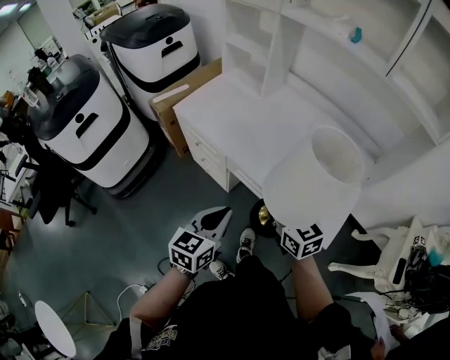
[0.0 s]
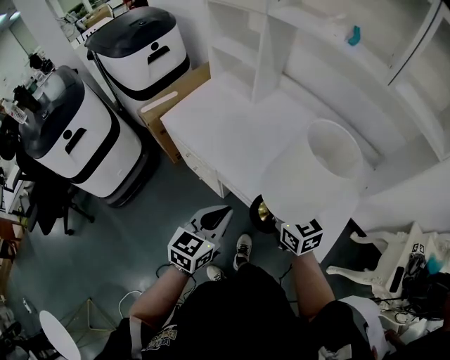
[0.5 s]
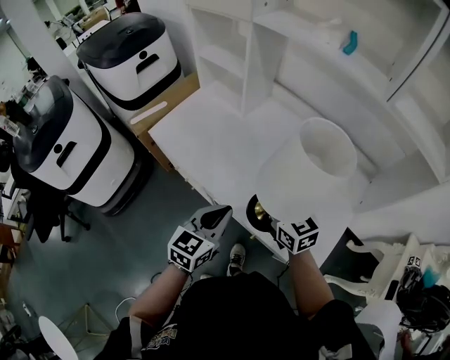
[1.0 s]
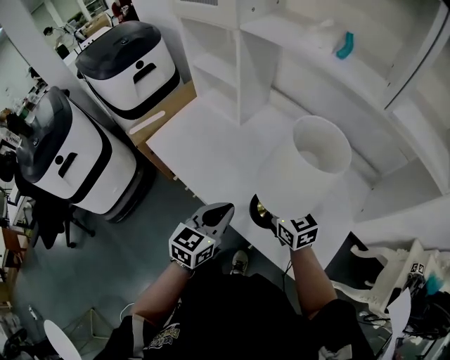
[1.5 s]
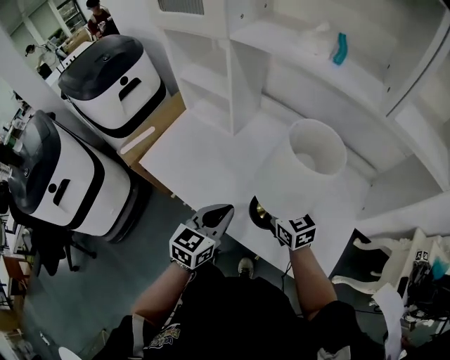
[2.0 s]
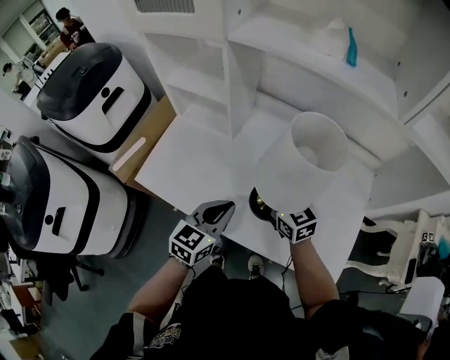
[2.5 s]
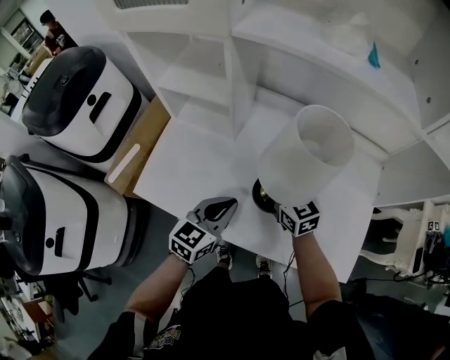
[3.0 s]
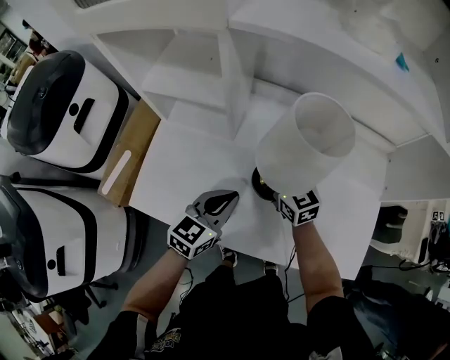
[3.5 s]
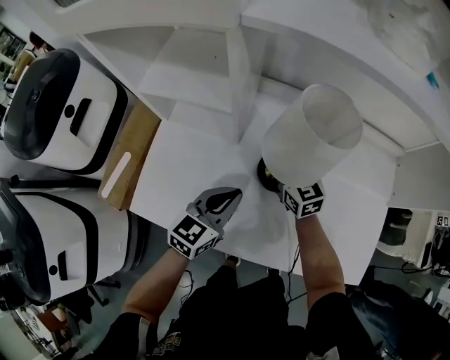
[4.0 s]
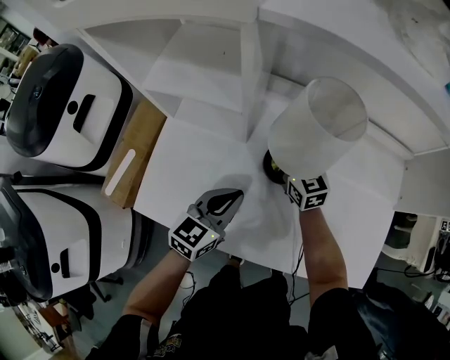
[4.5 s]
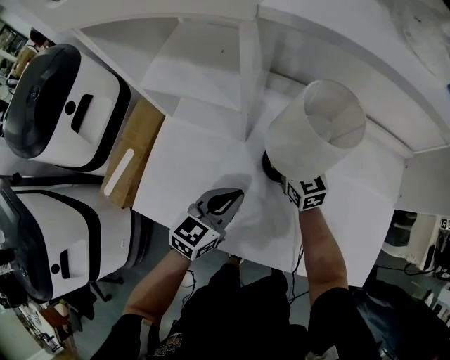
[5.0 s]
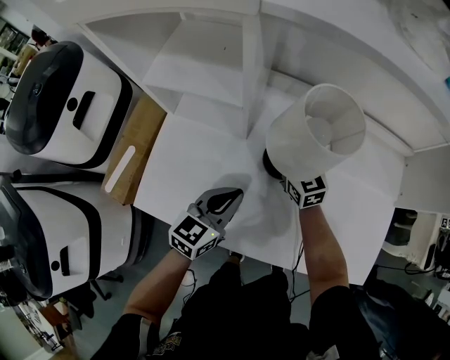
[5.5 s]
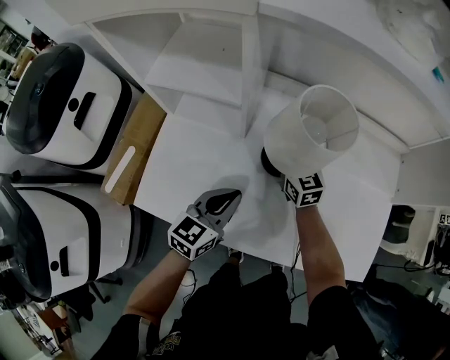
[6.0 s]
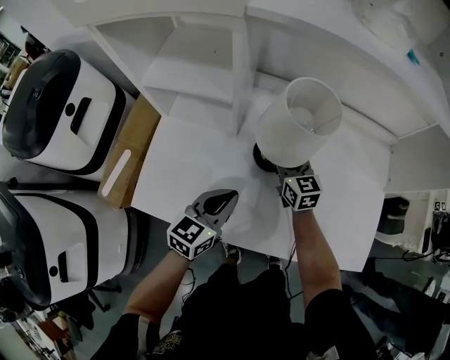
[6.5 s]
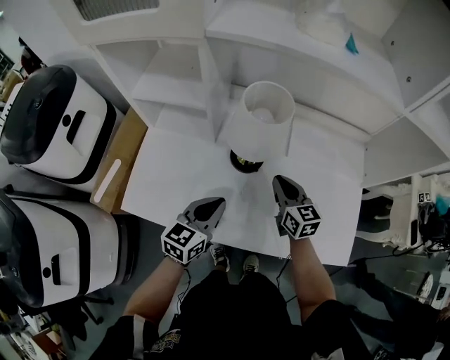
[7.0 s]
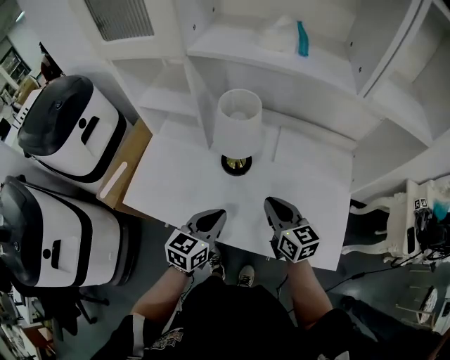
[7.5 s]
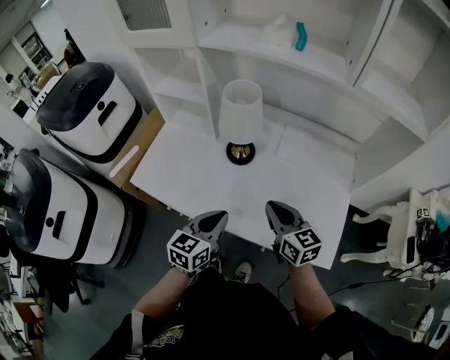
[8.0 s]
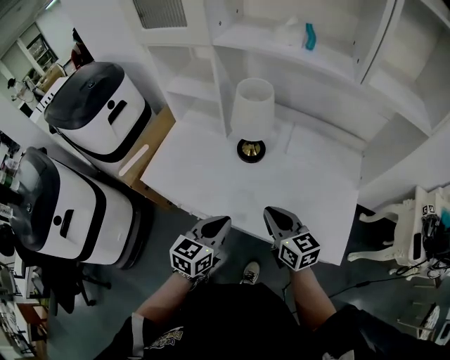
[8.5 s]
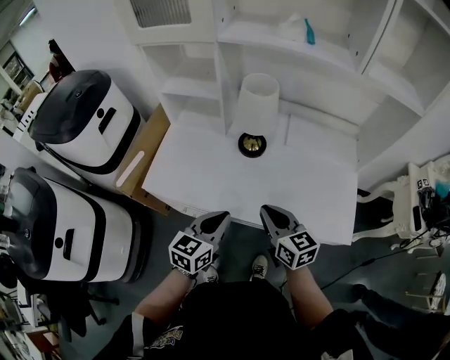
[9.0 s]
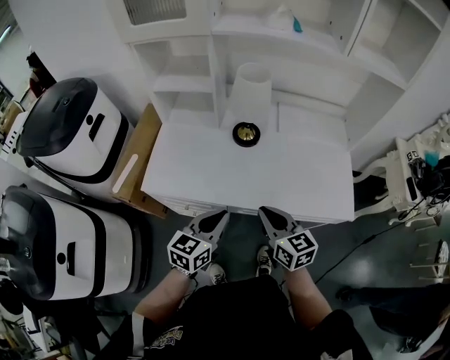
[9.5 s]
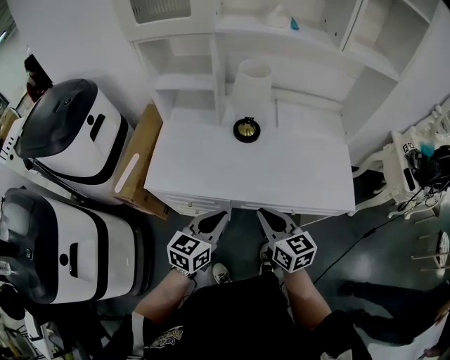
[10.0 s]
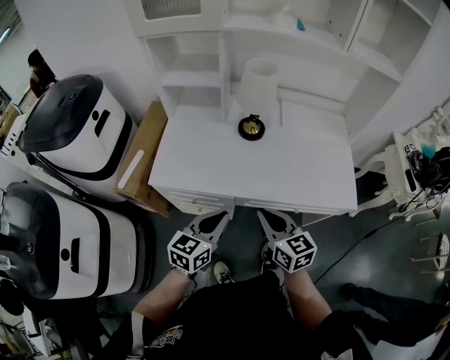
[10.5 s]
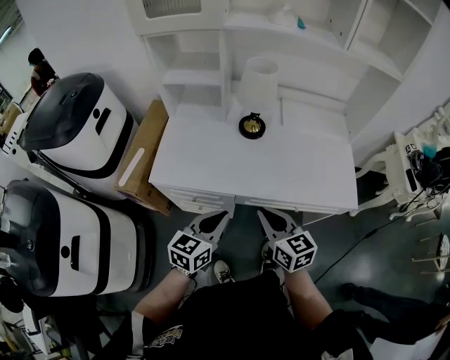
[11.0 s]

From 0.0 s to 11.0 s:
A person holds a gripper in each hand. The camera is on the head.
From 0.0 s to 2.0 s: Both grippers travel together forward, some 25 cm.
From 2.0 s to 3.5 s: The right gripper is displaced forward, downward and to the left by roughly 20 cm. Meanwhile the left gripper shifts approximately 20 cm forward, to the left and downward, and turns by approximately 20 degrees.
From 3.5 s to 5.5 s: The right gripper goes about 5 cm forward.
From 5.5 s to 7.5 s: The right gripper is displaced backward, to the right and upward by roughly 30 cm, and opens, then closes again; the left gripper is displaced backward, to the right and upward by some 20 cm.
From 7.5 s to 9.0 s: Both grippers travel together backward and to the left, approximately 15 cm.
From 9.0 s to 11.0 s: The grippers both shift backward and to the left by approximately 10 cm.

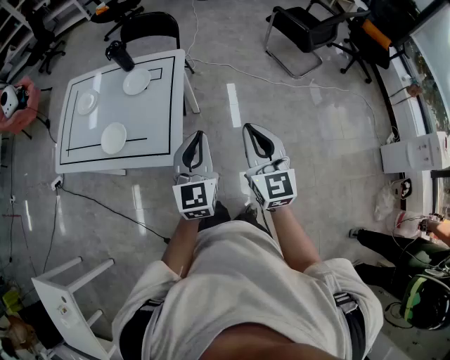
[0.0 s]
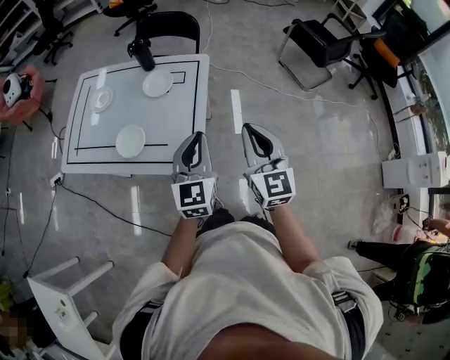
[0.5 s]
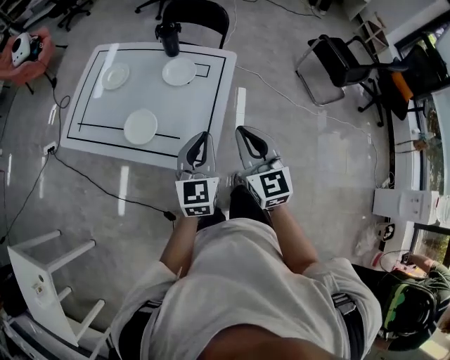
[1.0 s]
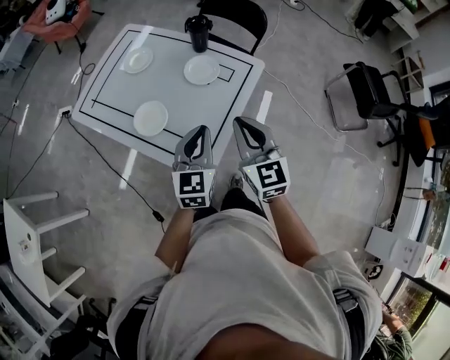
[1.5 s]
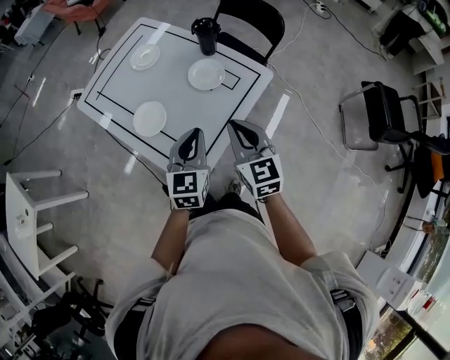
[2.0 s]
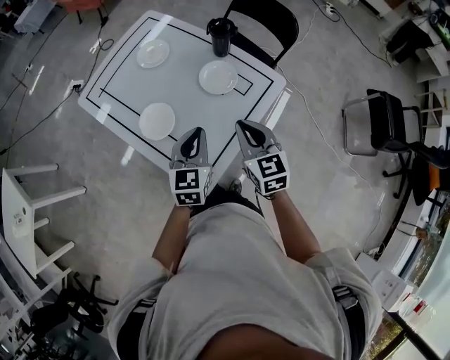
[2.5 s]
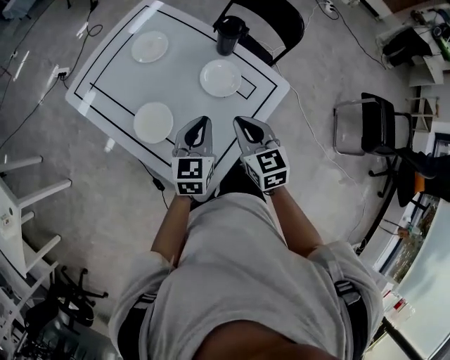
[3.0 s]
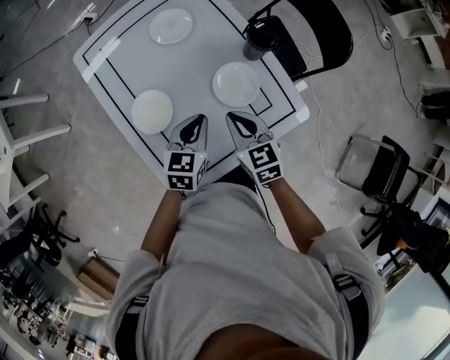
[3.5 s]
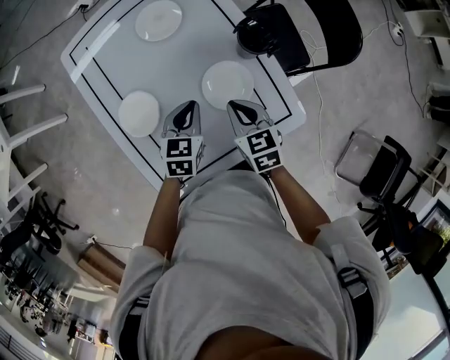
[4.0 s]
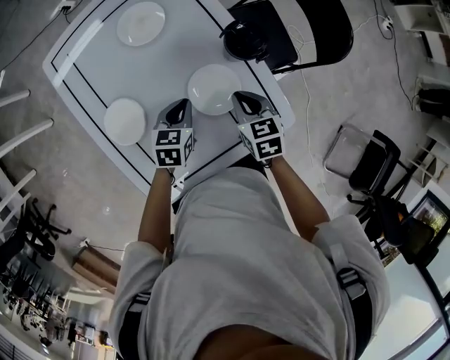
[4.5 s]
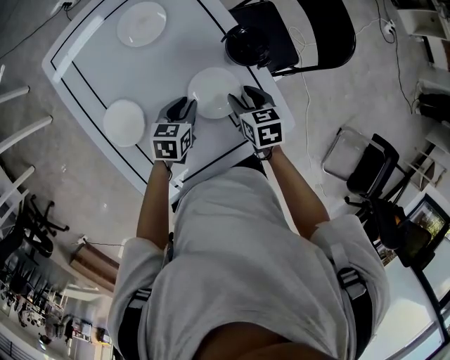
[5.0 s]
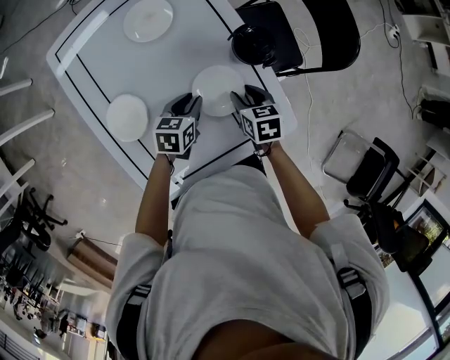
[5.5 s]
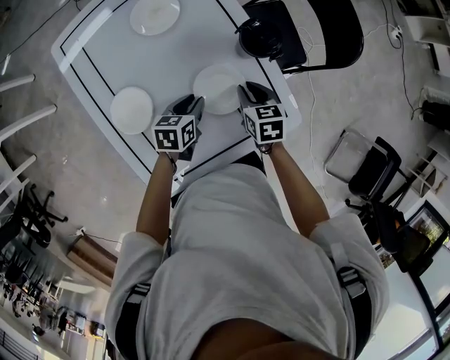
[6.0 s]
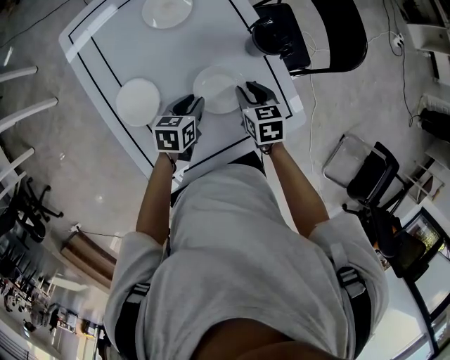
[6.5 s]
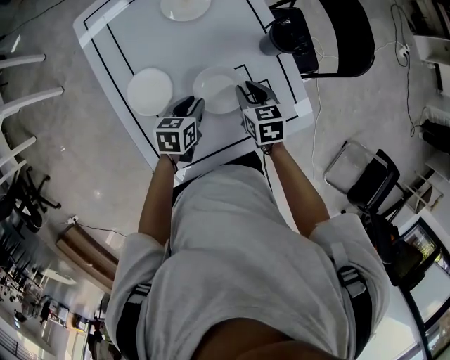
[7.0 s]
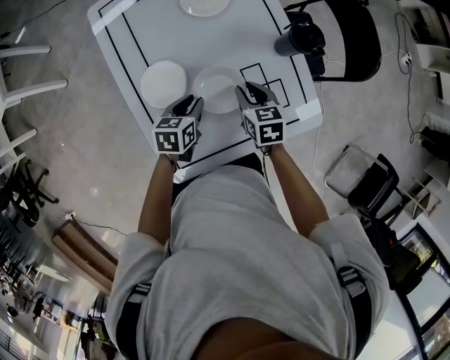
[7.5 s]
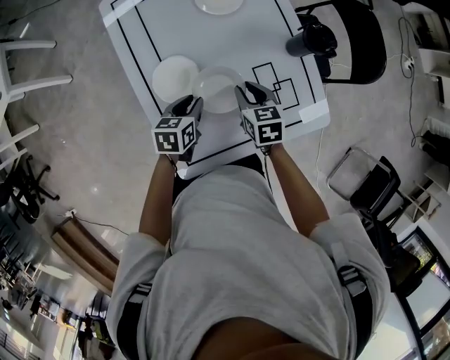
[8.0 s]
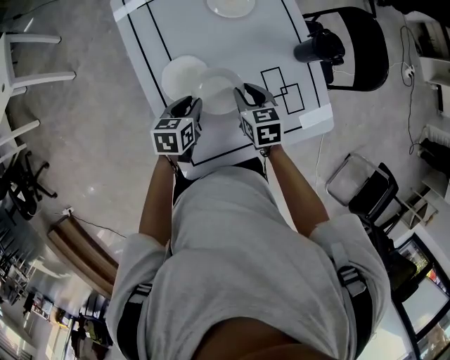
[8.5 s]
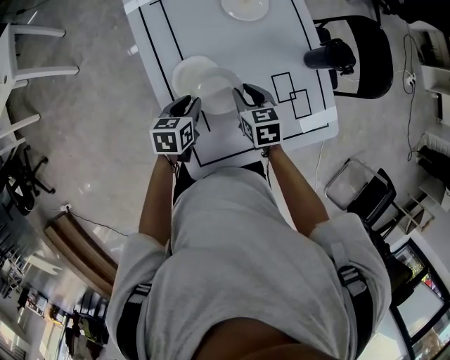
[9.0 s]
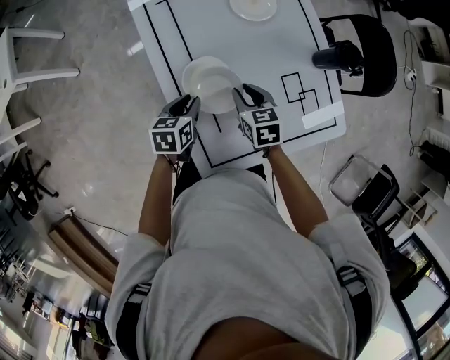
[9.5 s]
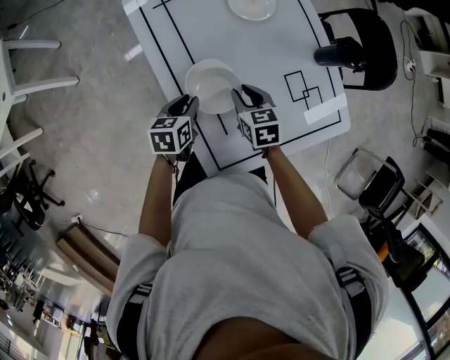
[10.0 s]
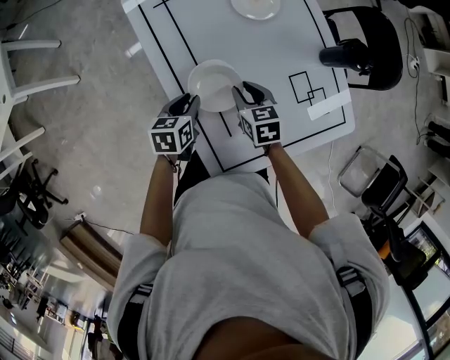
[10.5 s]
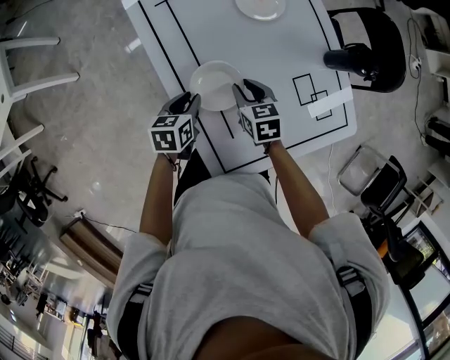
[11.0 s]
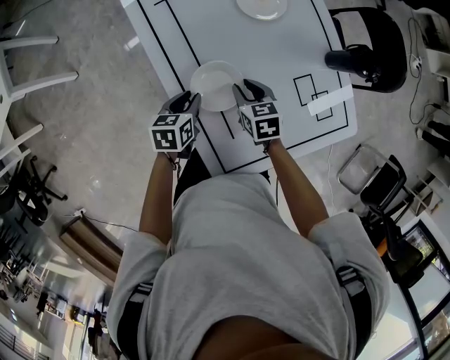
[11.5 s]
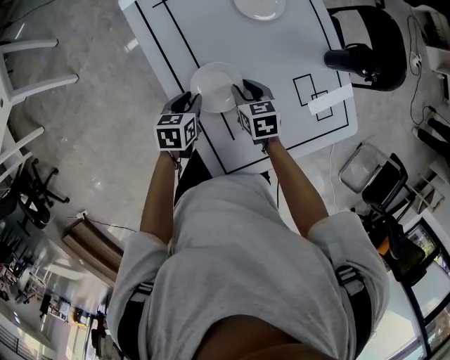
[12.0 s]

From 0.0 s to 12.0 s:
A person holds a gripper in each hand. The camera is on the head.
From 0.0 s to 2.0 s: The right gripper moves about 35 cm, and turns by about 40 degrees, while the left gripper moves approximately 30 cm, and swivels about 30 degrees.
From 2.0 s to 4.0 s: The right gripper ends up about 35 cm from where it was, and changes its angle by approximately 40 degrees. Meanwhile the left gripper changes place by roughly 35 cm, and turns by about 30 degrees.
From 4.0 s to 6.0 s: The right gripper heads downward and to the right, covering approximately 10 cm, and opens and closes again, while the left gripper travels downward by about 10 cm, changes its angle by some 20 degrees, and opens up.
From 6.0 s to 8.0 s: The left gripper is displaced to the left and backward by approximately 15 cm. The right gripper is displaced to the left by approximately 15 cm.
From 8.0 s to 10.0 s: The grippers both shift to the left by roughly 15 cm.
From 10.0 s to 12.0 s: The right gripper shifts by some 5 cm.

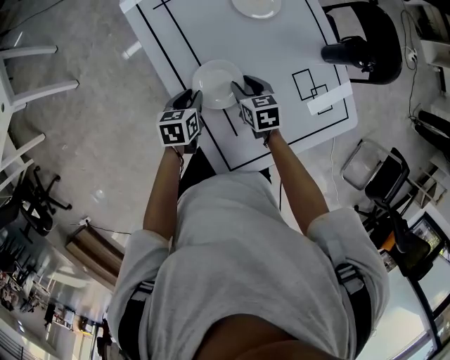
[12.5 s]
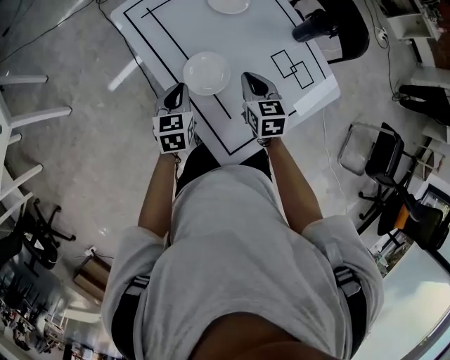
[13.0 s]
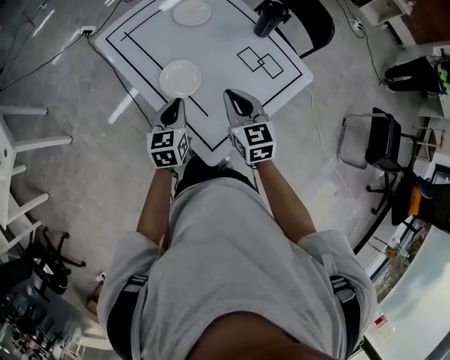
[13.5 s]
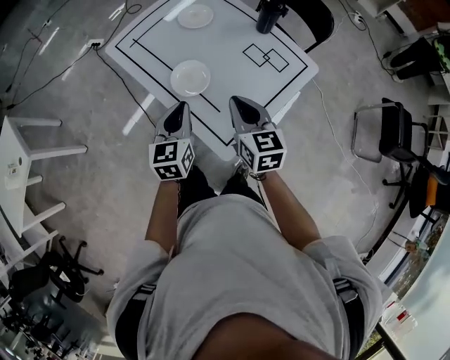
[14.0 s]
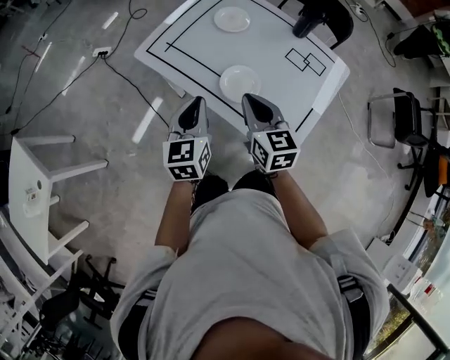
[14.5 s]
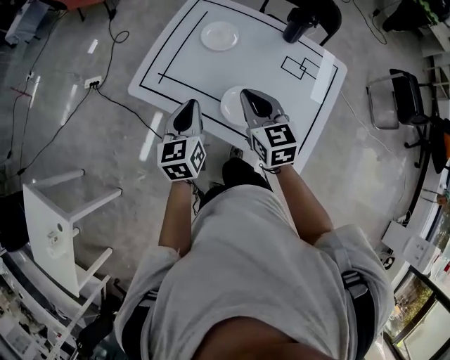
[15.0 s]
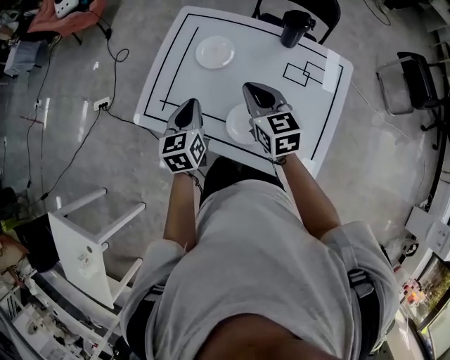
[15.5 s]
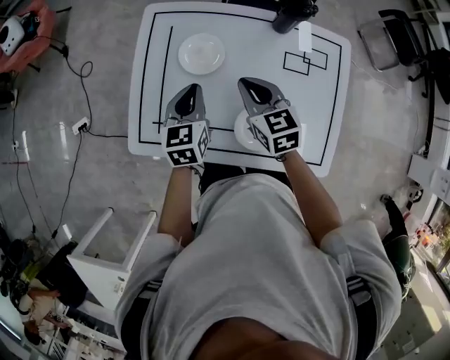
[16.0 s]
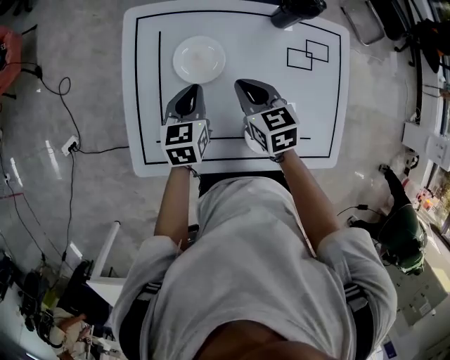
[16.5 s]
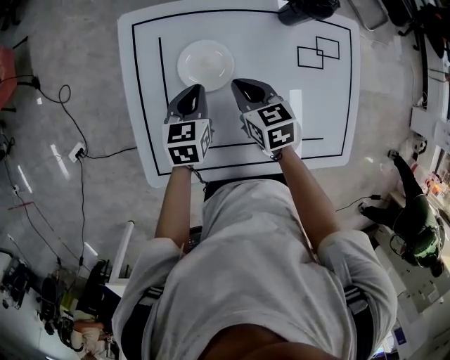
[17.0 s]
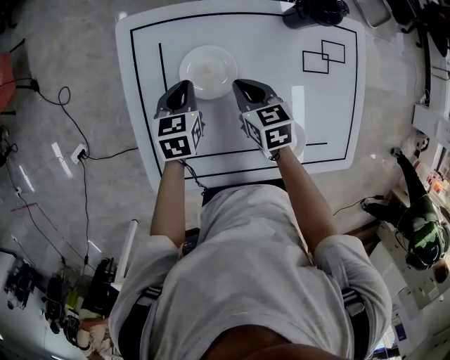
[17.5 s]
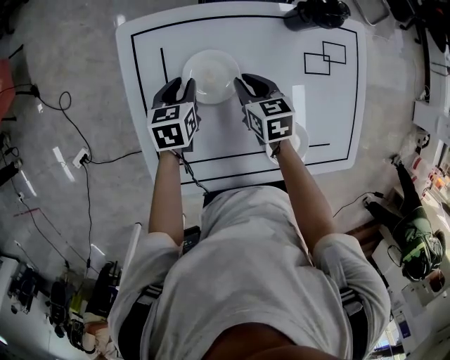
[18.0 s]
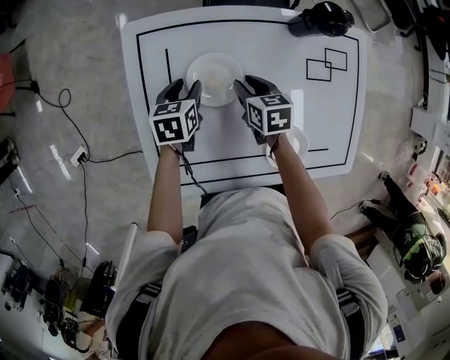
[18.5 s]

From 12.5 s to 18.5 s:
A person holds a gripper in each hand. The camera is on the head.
From 12.5 s to 14.5 s: The left gripper is displaced upward by roughly 25 cm, angles its fingers upward, by roughly 30 degrees, and closes up, while the right gripper moves upward, backward and to the left, some 30 cm, rotates roughly 40 degrees, and closes its fingers.
From 14.5 s to 16.5 s: The left gripper changes place by roughly 40 cm, and rotates approximately 40 degrees. Meanwhile the right gripper moves approximately 40 cm, and turns by roughly 30 degrees.
From 16.5 s to 18.5 s: The right gripper heads downward and forward, covering about 15 cm, changes its angle by about 20 degrees, and opens; the left gripper is displaced forward, downward and to the left by about 15 cm, and opens up.
